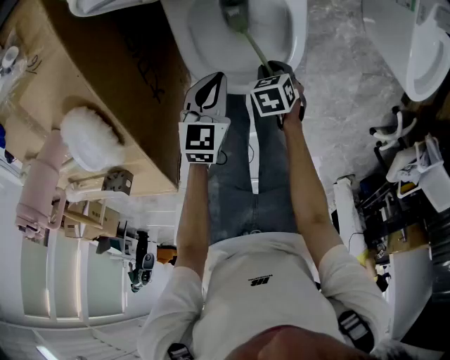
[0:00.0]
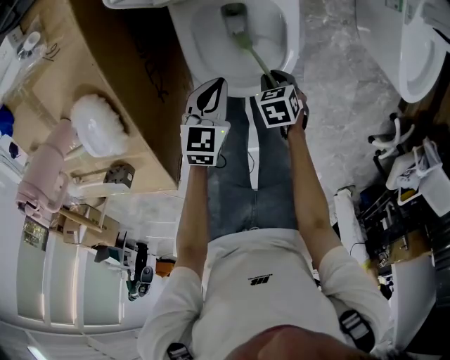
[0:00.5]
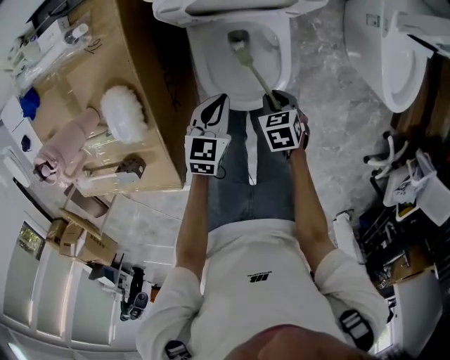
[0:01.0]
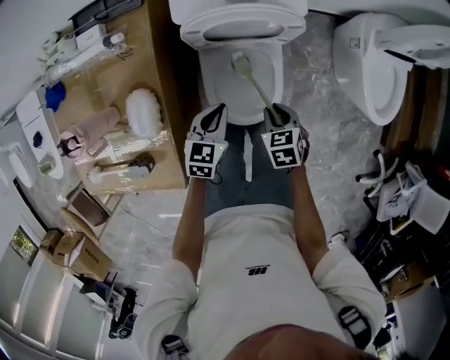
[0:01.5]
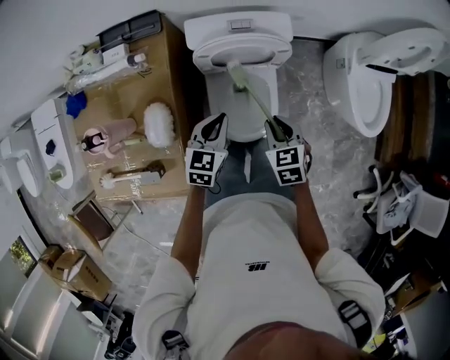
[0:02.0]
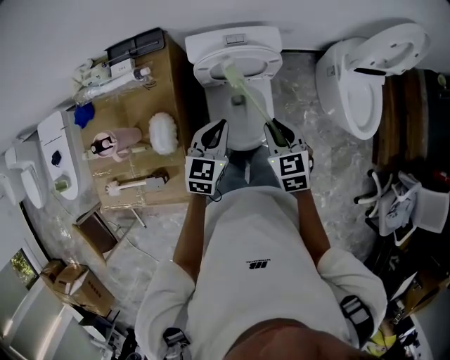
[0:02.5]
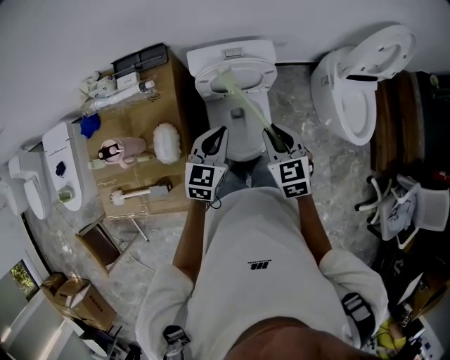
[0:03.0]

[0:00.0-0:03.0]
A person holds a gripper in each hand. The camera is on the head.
0:00.0 to 0:01.5: The grippers both shift upward by about 25 cm. The right gripper turns by about 30 degrees.
0:01.5 to 0:03.0: The two grippers go roughly 25 cm upward. The right gripper changes its angle by about 30 degrees.

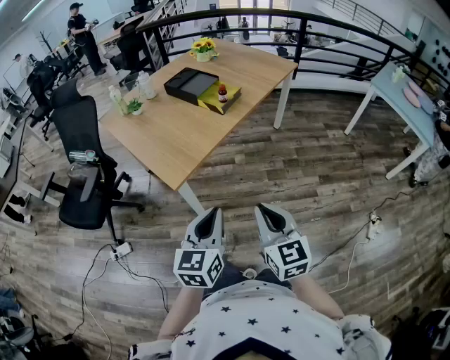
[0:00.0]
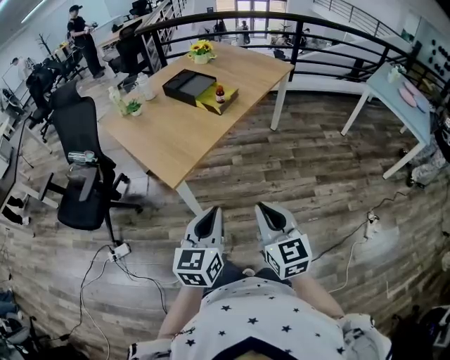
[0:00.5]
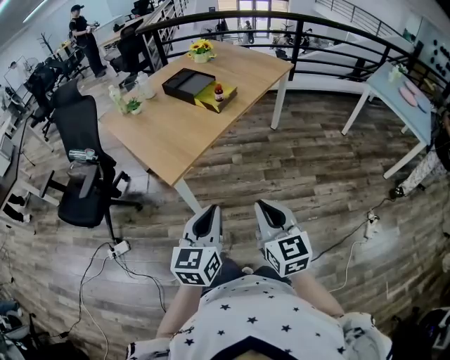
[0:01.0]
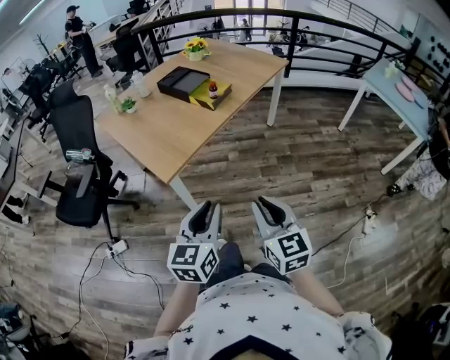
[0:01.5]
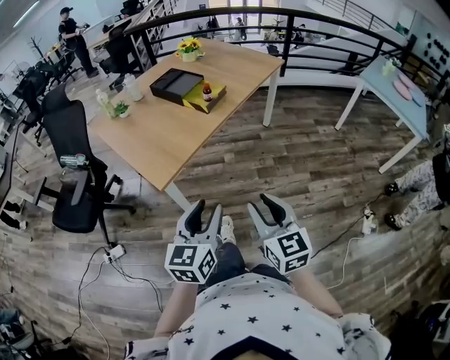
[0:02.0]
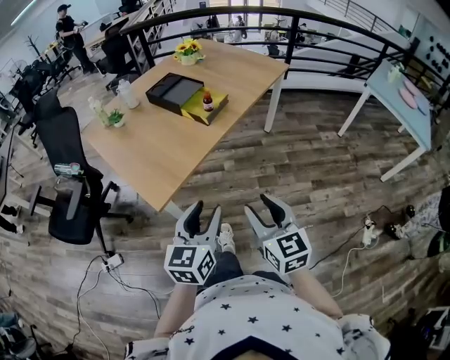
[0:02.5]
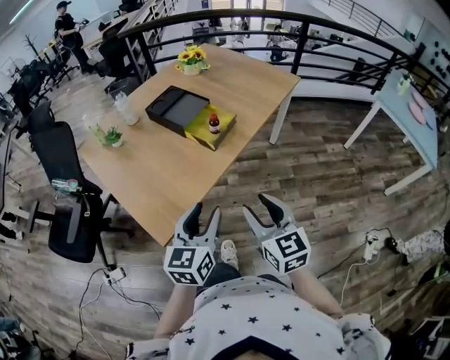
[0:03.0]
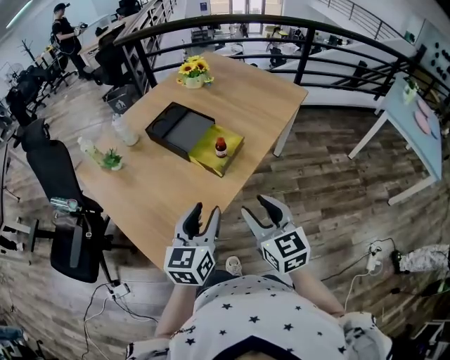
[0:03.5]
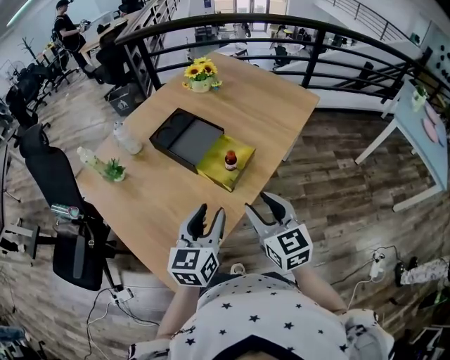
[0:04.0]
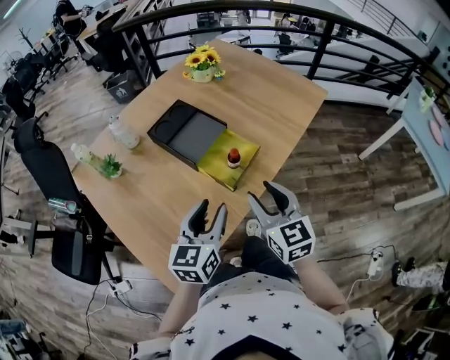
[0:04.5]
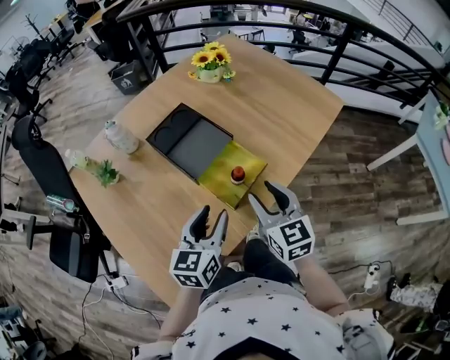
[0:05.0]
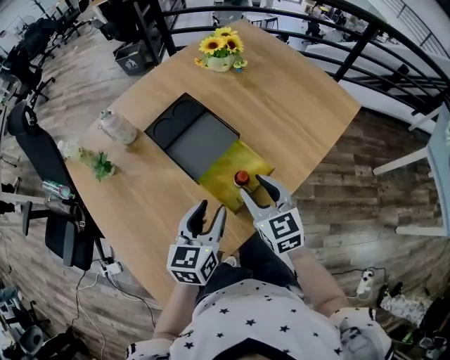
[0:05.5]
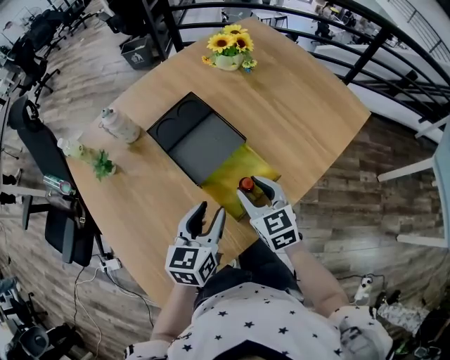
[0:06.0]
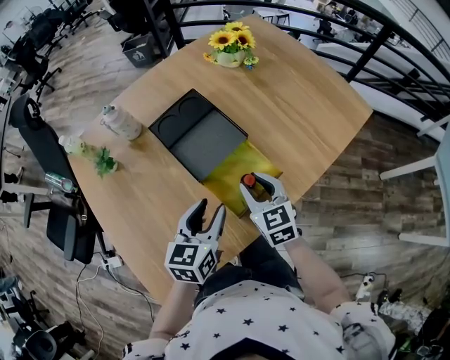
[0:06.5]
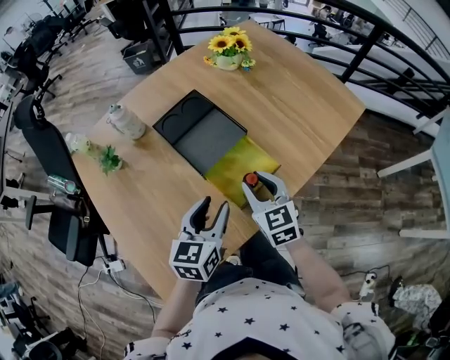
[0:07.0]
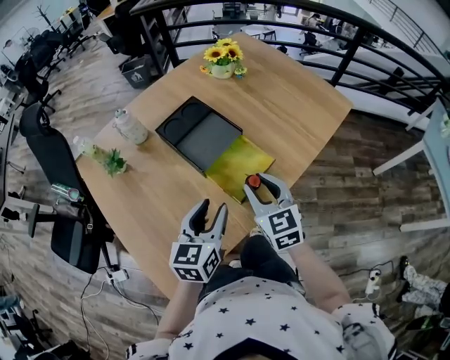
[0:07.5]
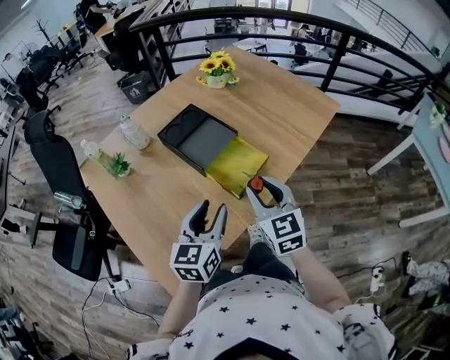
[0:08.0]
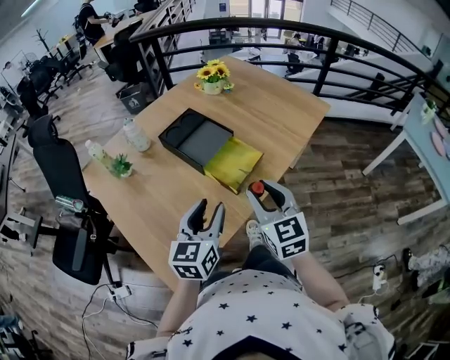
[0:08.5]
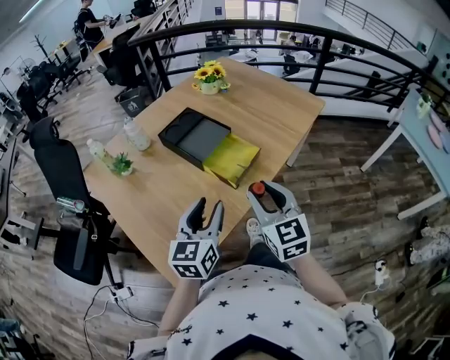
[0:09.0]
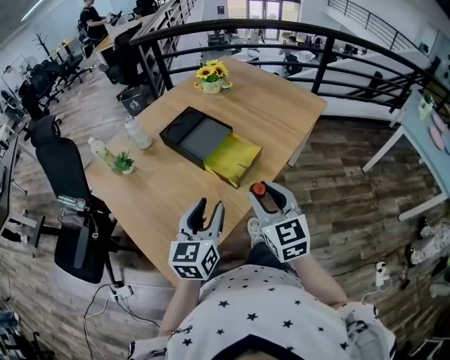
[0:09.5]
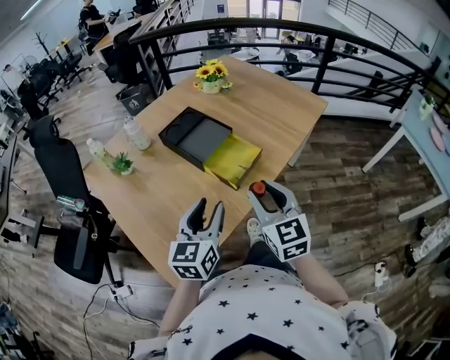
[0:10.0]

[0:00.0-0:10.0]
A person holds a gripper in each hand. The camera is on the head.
0:00.0 to 0:02.0: The right gripper opens. The left gripper opens its fingers.
0:02.0 to 0:04.0: The pair of grippers is taken forward, roughly 40 cm.
0:04.0 to 0:06.0: The grippers both shift forward and downward by roughly 20 cm.
0:06.0 to 0:08.0: Both grippers travel together backward and upward, roughly 15 cm.
0:08.0 to 0:10.0: The right gripper is displaced backward by about 10 cm. Meanwhile the left gripper heads backward, covering some 5 cm.

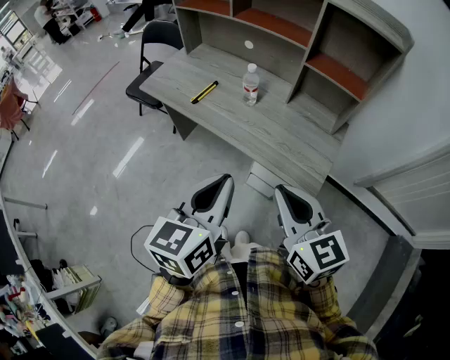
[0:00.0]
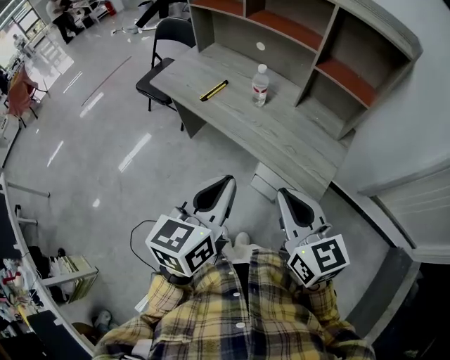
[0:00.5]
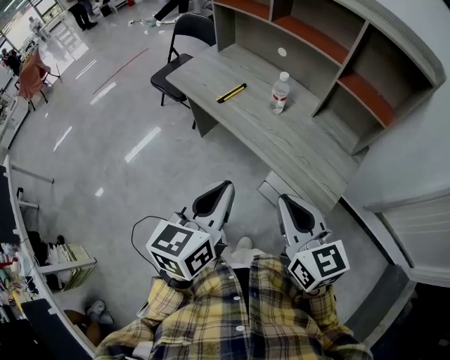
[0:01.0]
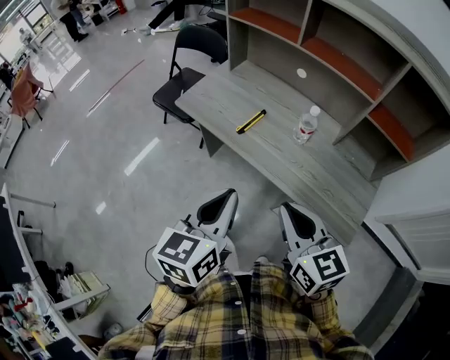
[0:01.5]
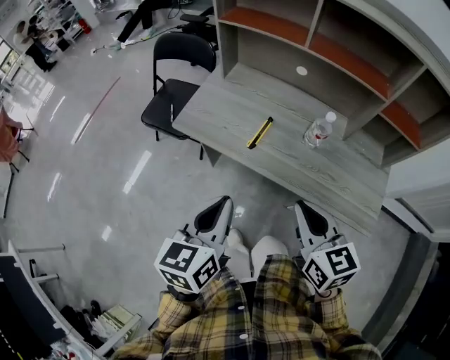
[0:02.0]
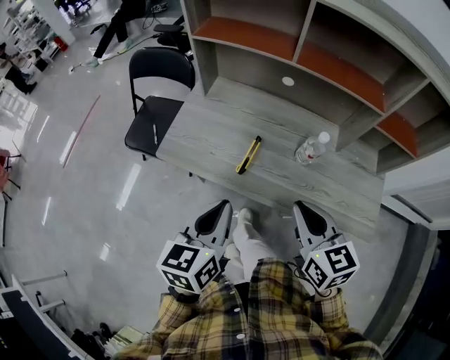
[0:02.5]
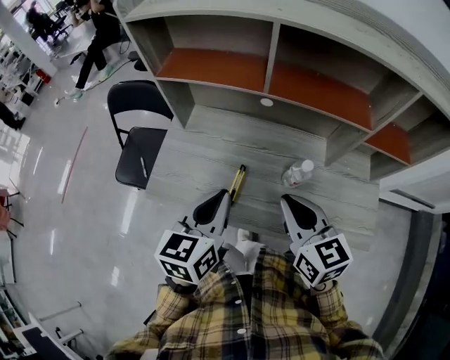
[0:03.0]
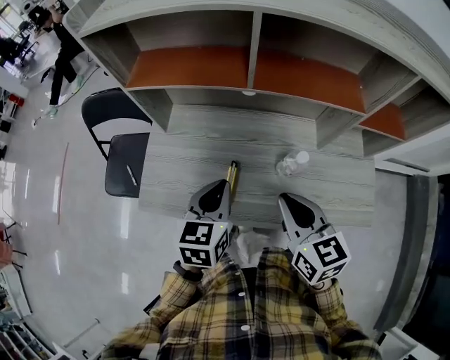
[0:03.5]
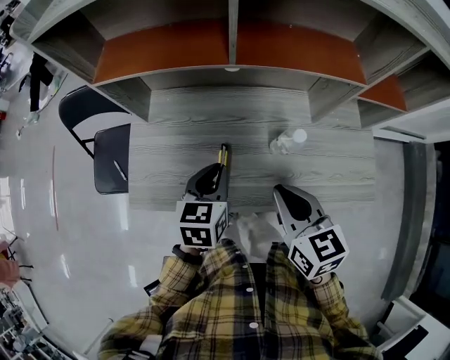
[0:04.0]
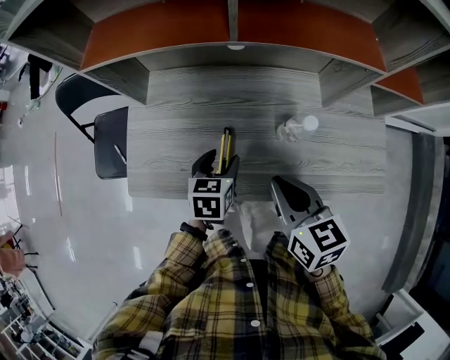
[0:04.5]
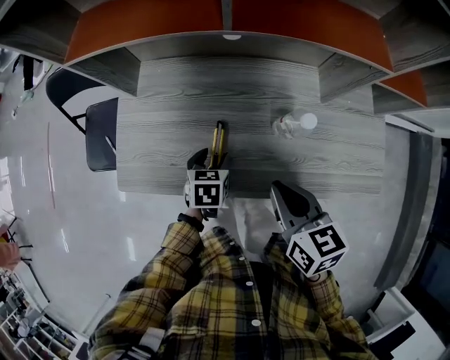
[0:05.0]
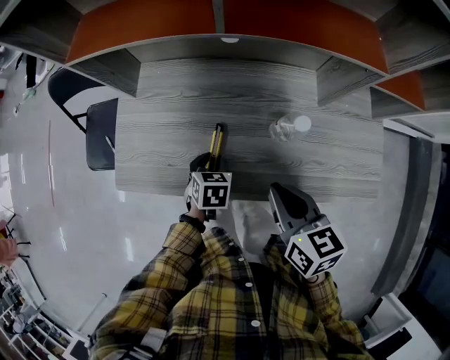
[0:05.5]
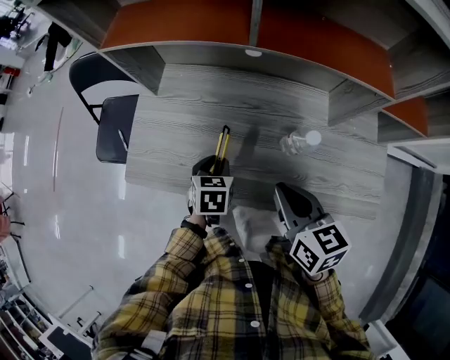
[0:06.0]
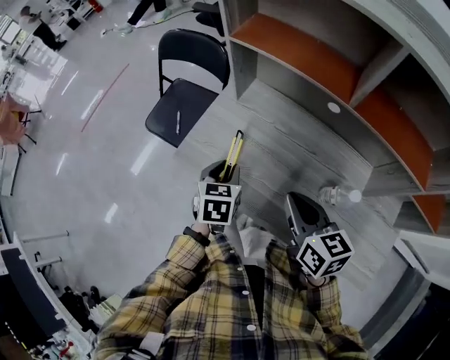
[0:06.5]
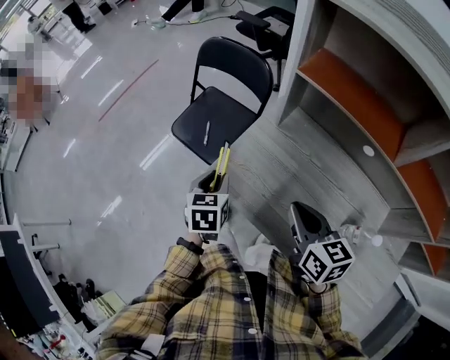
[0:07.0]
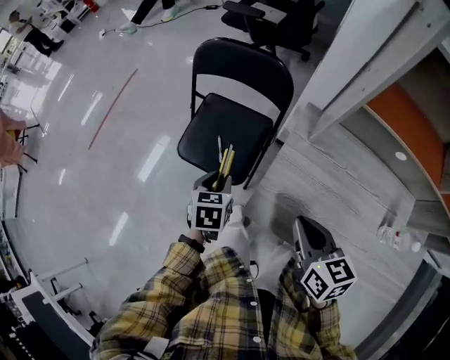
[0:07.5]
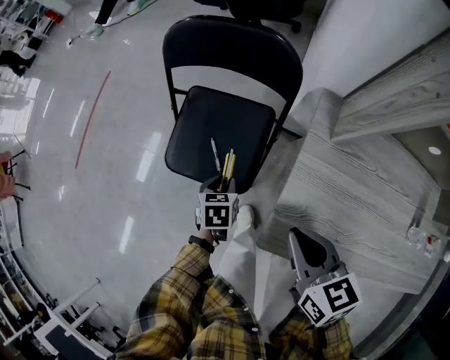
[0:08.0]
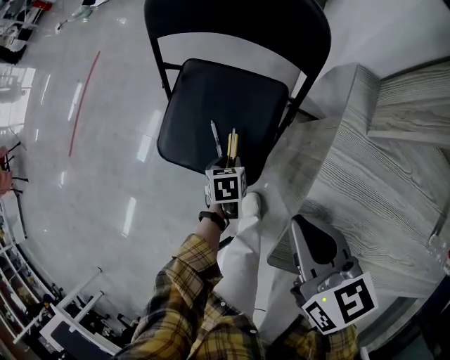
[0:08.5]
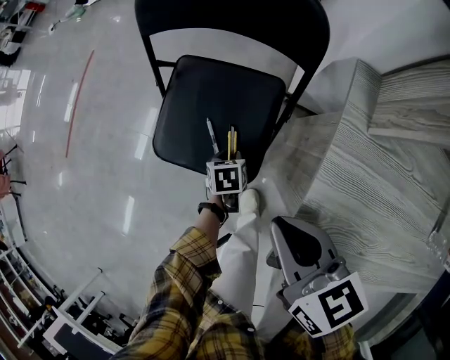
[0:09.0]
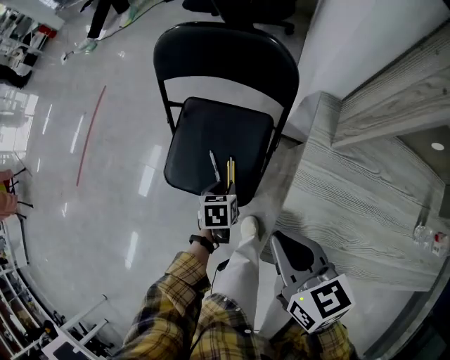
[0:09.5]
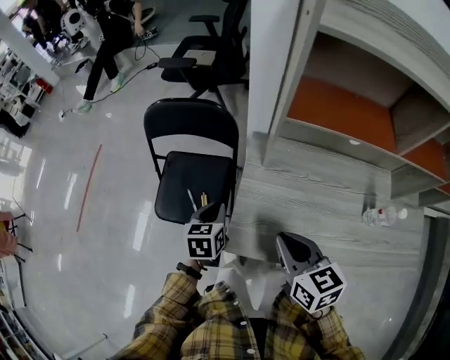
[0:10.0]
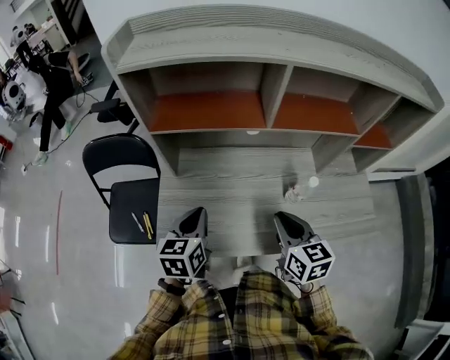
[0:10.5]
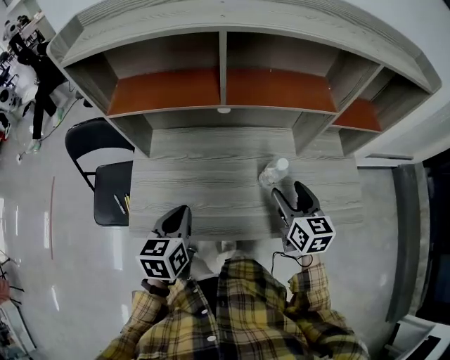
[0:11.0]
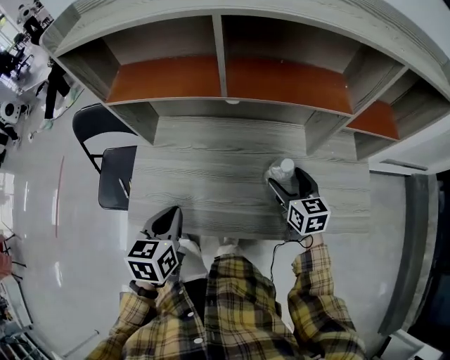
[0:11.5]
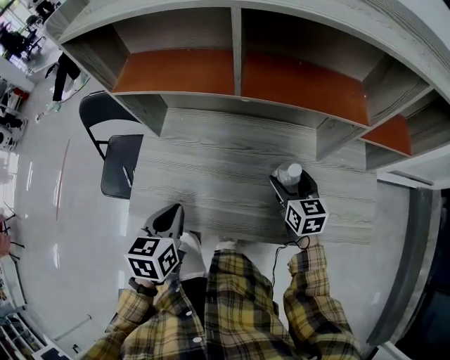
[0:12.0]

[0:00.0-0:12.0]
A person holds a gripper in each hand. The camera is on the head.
0:00.0 to 0:02.0: The two grippers go approximately 35 cm to the left and forward.
0:02.0 to 0:04.0: The grippers both shift forward by about 25 cm. The left gripper changes its angle by about 30 degrees; the right gripper turns by about 20 degrees.
0:04.0 to 0:06.0: The left gripper is displaced downward by roughly 15 cm, swivels roughly 20 degrees, and opens.
0:06.0 to 0:08.0: Both grippers are carried roughly 50 cm.
0:08.0 to 0:10.0: The right gripper travels upward and to the right by approximately 15 cm, while the left gripper moves upward and to the right, roughly 25 cm, and changes its angle by approximately 20 degrees.
0:10.0 to 0:12.0: The two grippers go roughly 35 cm to the right. The right gripper opens its fingers.

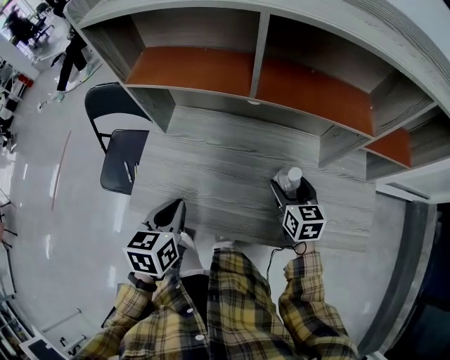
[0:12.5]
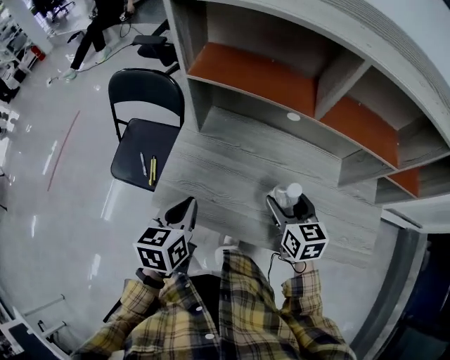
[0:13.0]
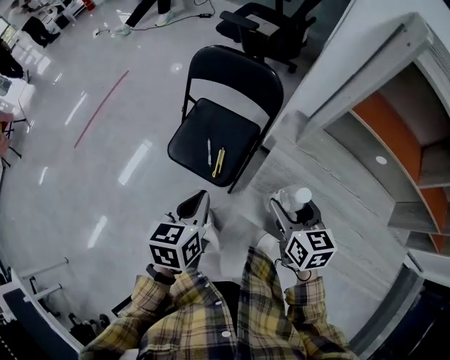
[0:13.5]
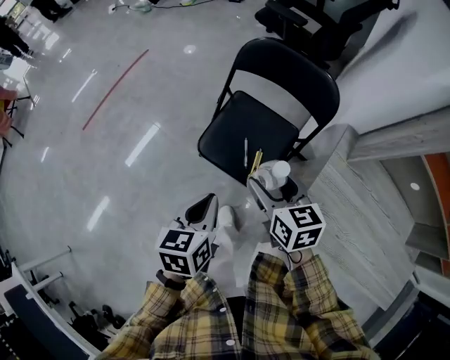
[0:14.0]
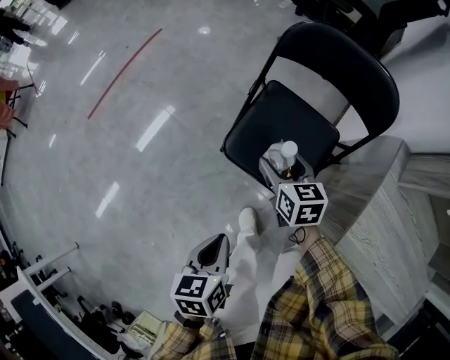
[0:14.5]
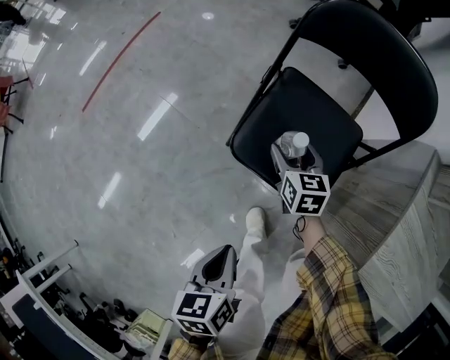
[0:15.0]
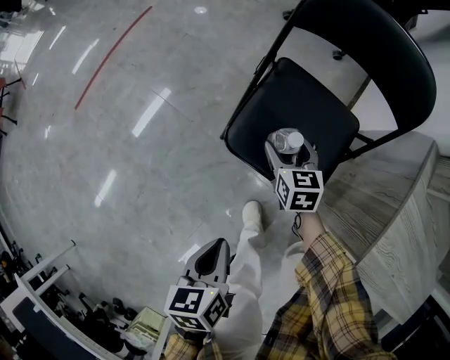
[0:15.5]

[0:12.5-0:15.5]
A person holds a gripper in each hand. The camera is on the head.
0:12.5 to 0:14.0: The pair of grippers is taken some 60 cm. The right gripper rotates some 30 degrees; the left gripper swivels about 30 degrees.
0:14.0 to 0:15.5: The right gripper shifts approximately 35 cm downward and forward. The left gripper heads downward and to the left, covering roughly 20 cm.
